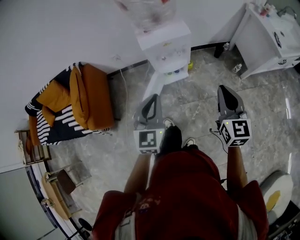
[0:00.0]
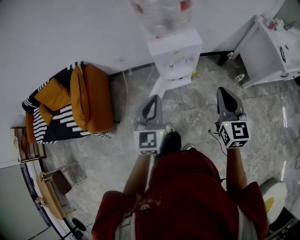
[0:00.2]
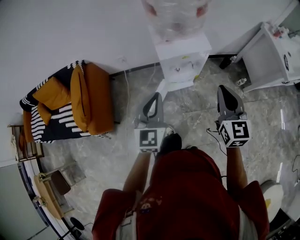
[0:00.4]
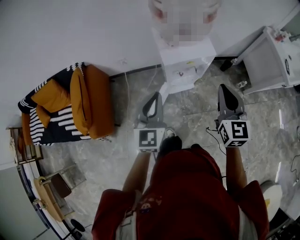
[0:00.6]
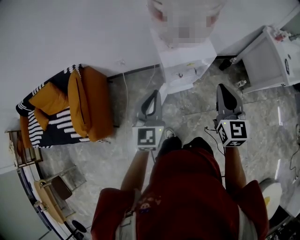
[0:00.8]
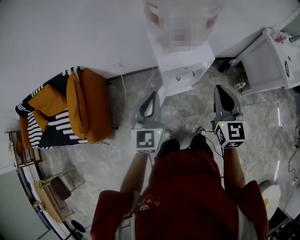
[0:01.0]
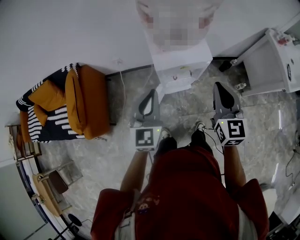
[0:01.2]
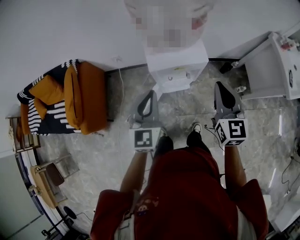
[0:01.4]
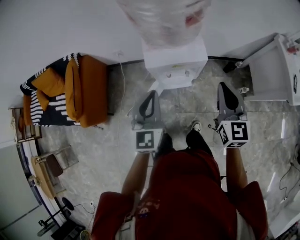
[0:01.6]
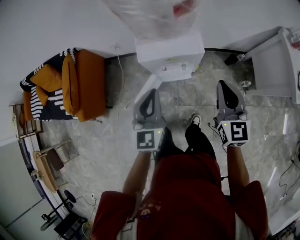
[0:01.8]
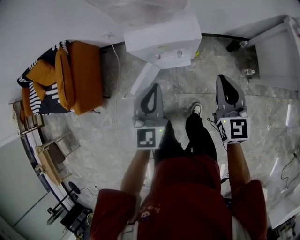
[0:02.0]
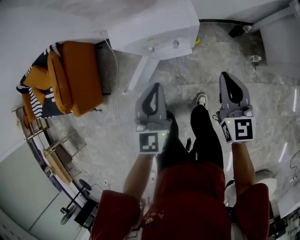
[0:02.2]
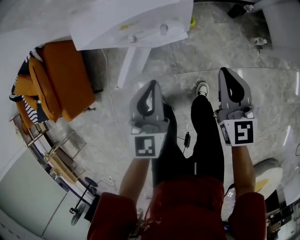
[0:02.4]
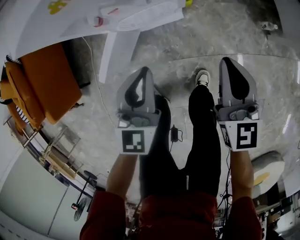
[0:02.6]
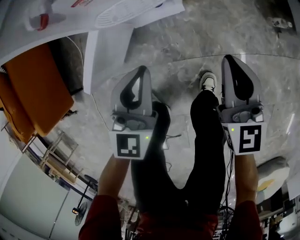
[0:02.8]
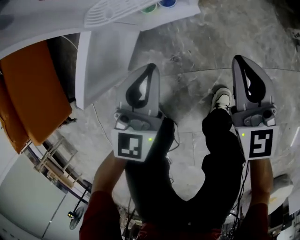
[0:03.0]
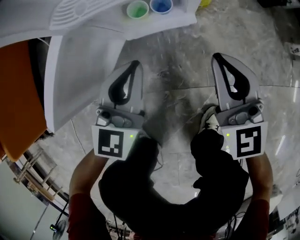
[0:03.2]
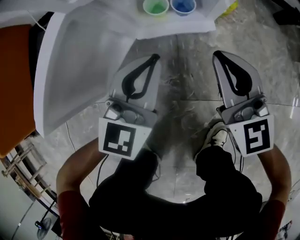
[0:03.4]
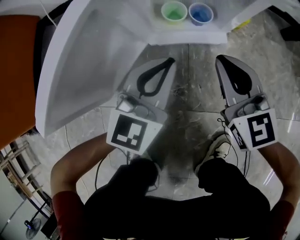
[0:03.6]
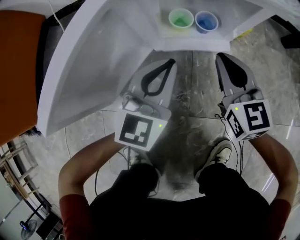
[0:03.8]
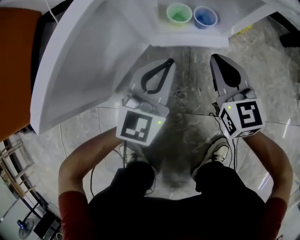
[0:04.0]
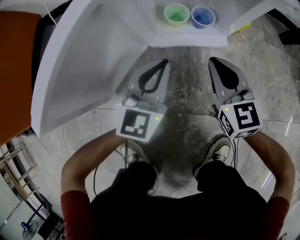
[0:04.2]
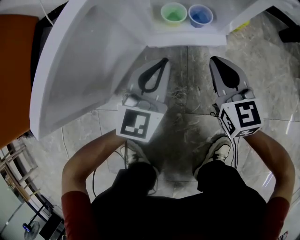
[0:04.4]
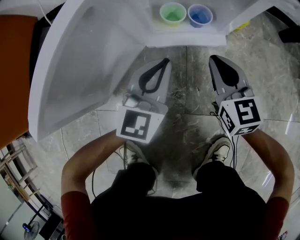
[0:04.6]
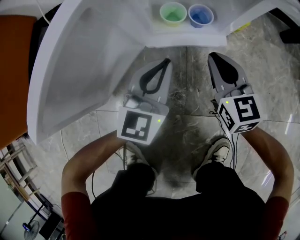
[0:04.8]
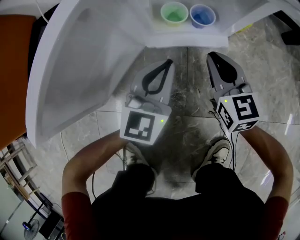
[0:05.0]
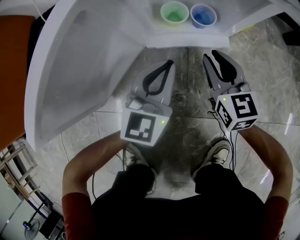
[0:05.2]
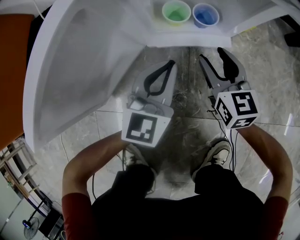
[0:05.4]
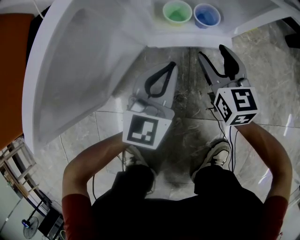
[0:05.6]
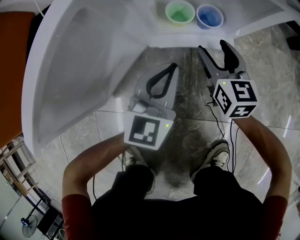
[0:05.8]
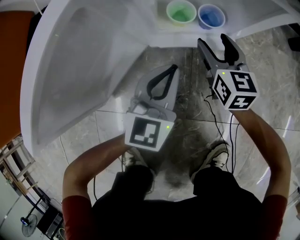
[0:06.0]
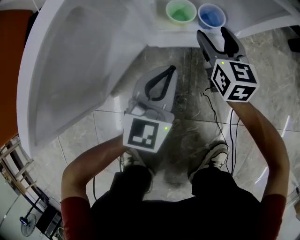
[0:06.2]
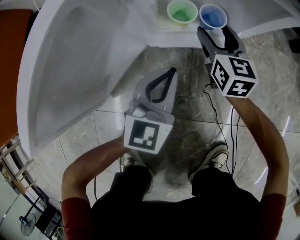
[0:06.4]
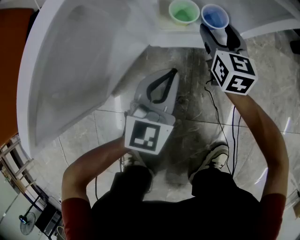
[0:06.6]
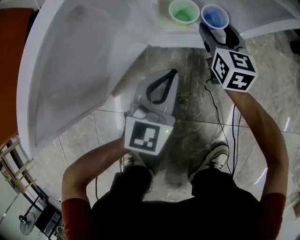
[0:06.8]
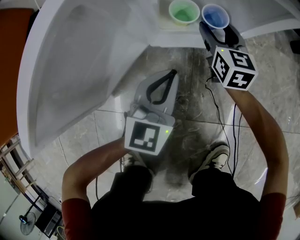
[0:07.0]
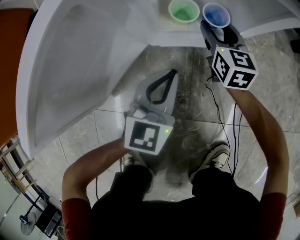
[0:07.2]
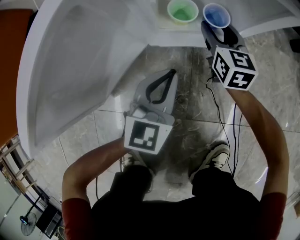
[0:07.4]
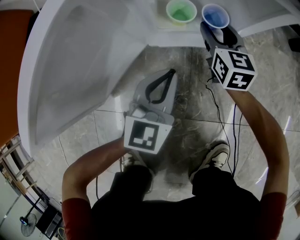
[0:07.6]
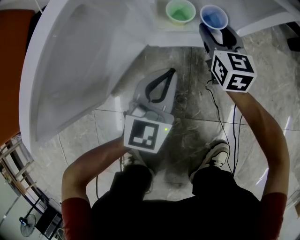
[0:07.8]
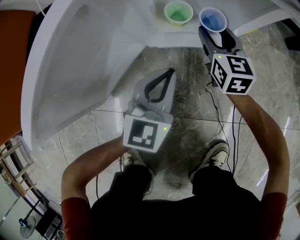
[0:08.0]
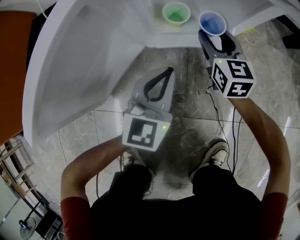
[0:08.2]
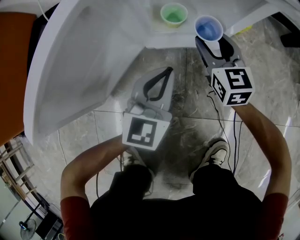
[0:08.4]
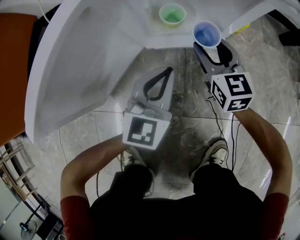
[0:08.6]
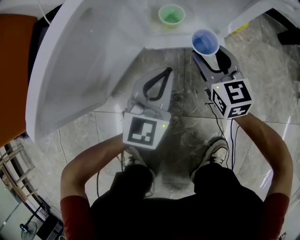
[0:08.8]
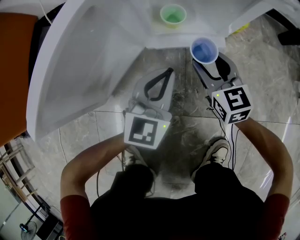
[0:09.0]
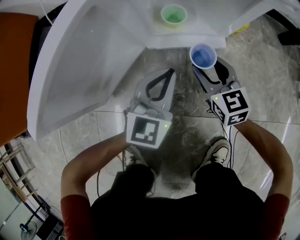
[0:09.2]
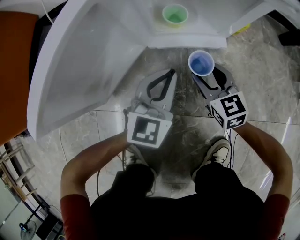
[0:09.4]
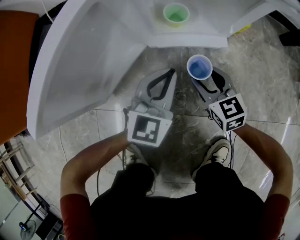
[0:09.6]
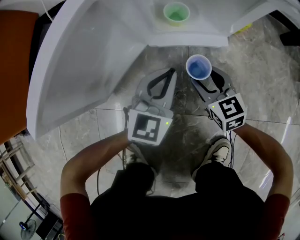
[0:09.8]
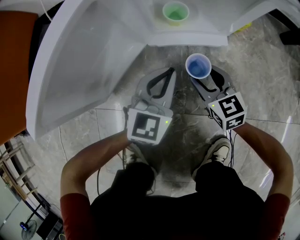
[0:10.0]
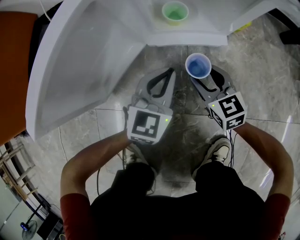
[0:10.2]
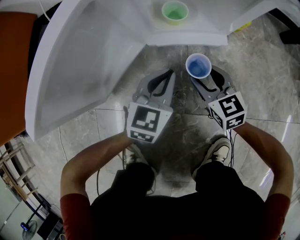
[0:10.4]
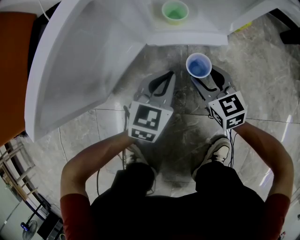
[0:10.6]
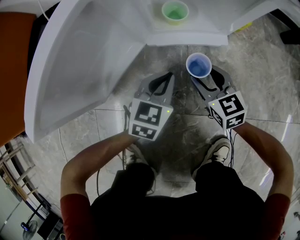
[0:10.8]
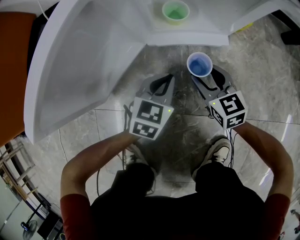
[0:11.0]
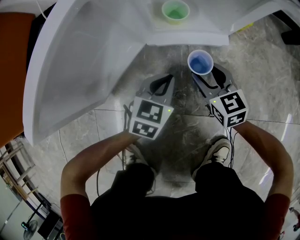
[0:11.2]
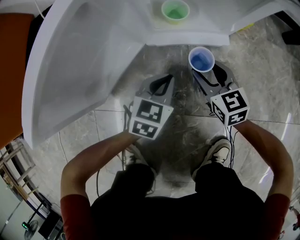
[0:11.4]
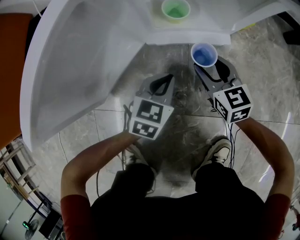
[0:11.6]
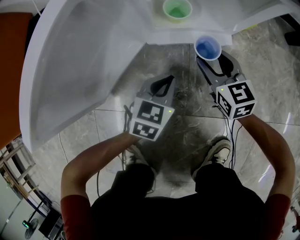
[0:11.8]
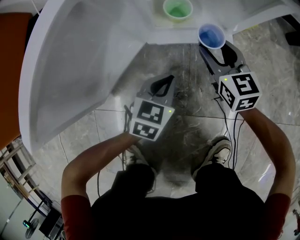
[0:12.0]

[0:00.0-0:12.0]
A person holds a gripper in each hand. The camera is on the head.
0:00.0 to 0:01.6: Both grippers move forward, about 25 cm.
0:01.6 to 0:03.0: Both grippers travel together downward, approximately 60 cm.
0:03.0 to 0:04.4: The left gripper is displaced downward by about 20 cm. Meanwhile the right gripper goes some 25 cm downward and to the left.
0:04.4 to 0:06.0: The right gripper heads forward and downward, covering approximately 10 cm, and opens its fingers.
0:06.0 to 0:07.6: The right gripper shifts by roughly 5 cm.
0:07.6 to 0:09.0: The right gripper shifts approximately 10 cm backward.
0:09.0 to 0:10.4: The right gripper moves some 5 cm. Meanwhile the left gripper heads downward, covering roughly 5 cm.
0:10.4 to 0:12.0: The right gripper travels forward by approximately 10 cm. Meanwhile the left gripper travels downward by some 5 cm.

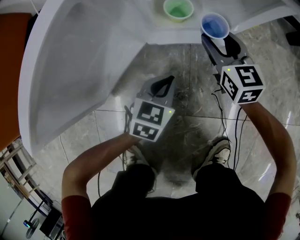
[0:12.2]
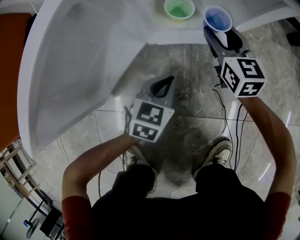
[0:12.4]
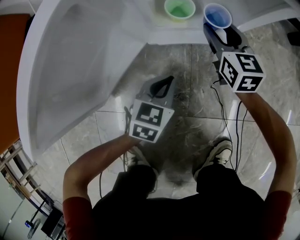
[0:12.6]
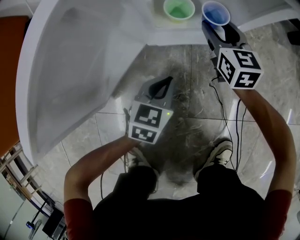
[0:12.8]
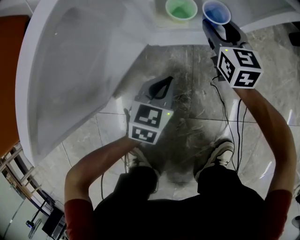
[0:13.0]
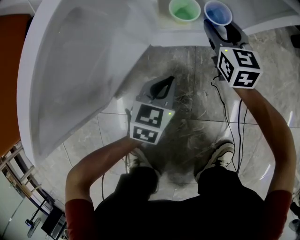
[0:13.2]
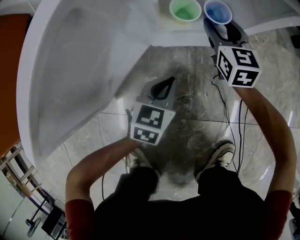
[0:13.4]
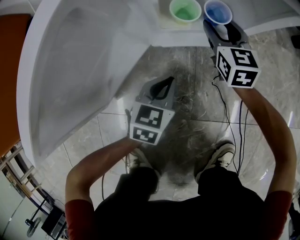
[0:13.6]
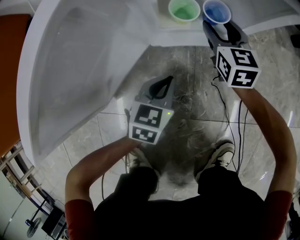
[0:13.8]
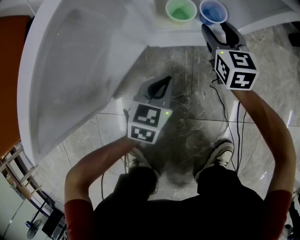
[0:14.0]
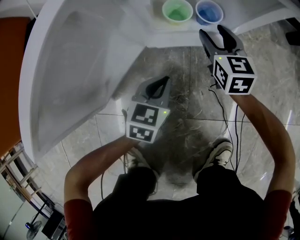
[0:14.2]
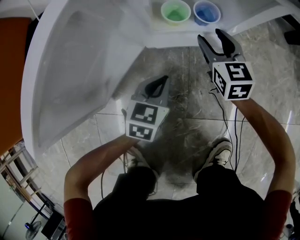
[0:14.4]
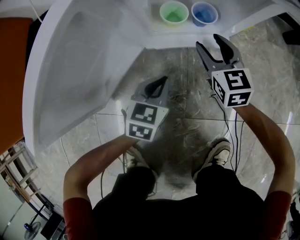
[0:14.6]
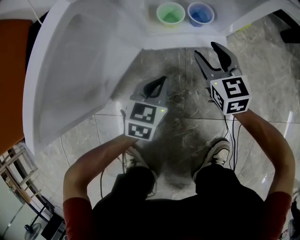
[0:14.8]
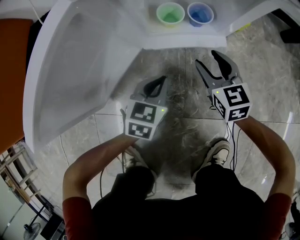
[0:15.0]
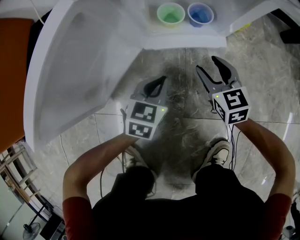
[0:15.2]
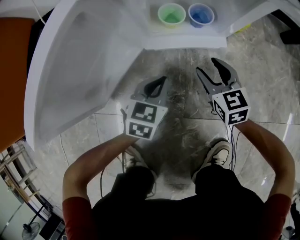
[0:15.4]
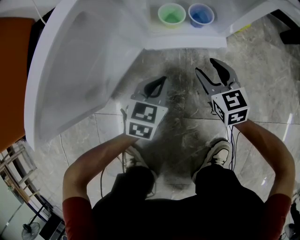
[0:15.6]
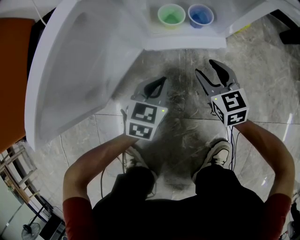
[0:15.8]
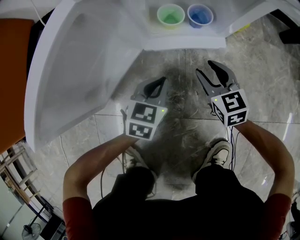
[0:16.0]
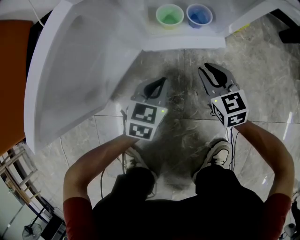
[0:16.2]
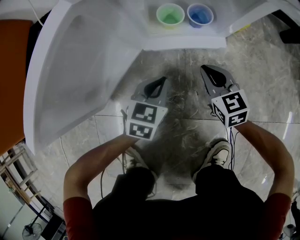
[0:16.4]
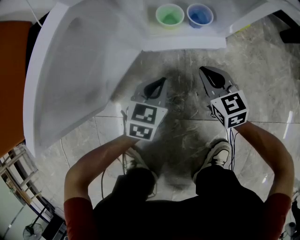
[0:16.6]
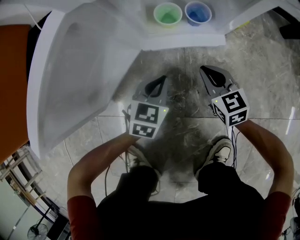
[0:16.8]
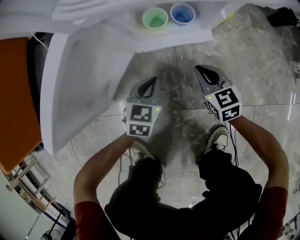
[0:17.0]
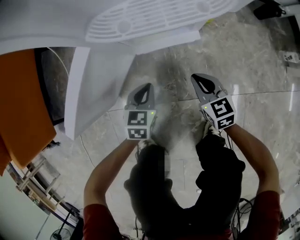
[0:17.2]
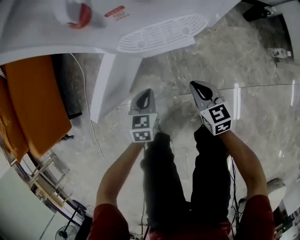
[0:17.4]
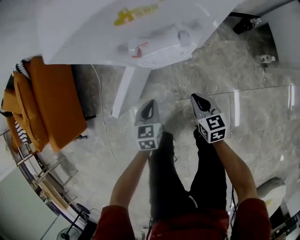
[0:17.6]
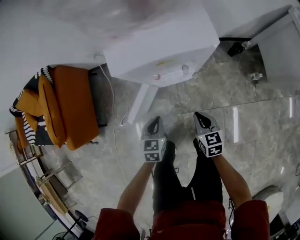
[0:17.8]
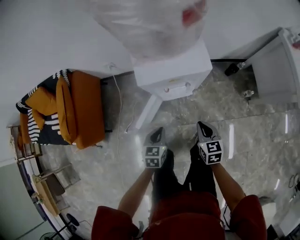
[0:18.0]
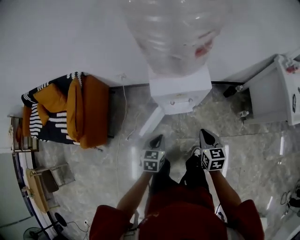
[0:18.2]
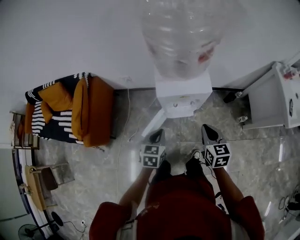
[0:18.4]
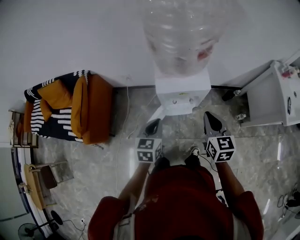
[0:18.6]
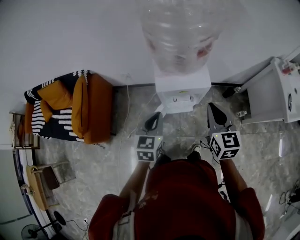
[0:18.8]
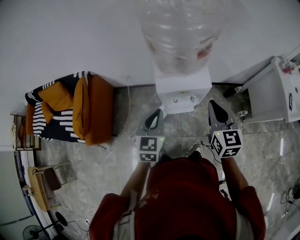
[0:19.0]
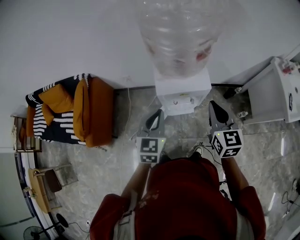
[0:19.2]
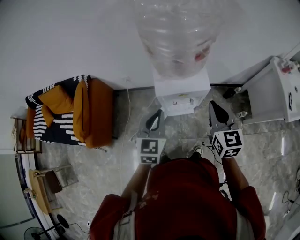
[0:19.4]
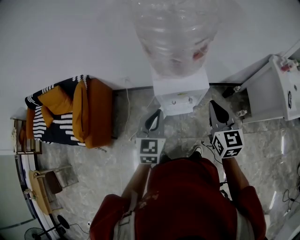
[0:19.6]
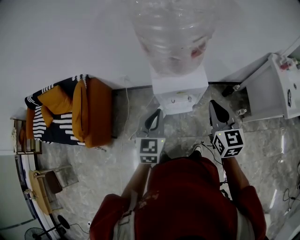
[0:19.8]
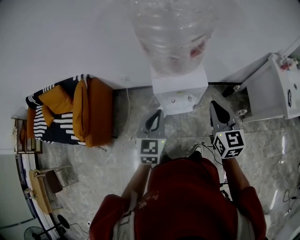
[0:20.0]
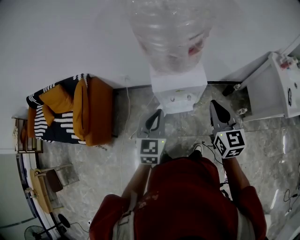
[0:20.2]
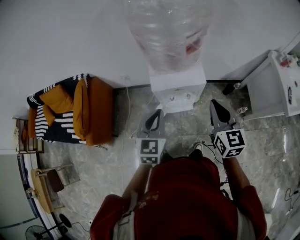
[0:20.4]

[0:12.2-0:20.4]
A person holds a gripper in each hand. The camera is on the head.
0:12.2 to 0:13.8: The right gripper shifts approximately 5 cm forward.
0:13.8 to 0:15.4: The right gripper shifts approximately 15 cm backward.
0:15.4 to 0:17.2: The left gripper is displaced upward by roughly 10 cm; the right gripper shifts approximately 10 cm upward and backward, and closes up.
0:17.2 to 0:18.8: The two grippers go some 90 cm upward. The left gripper changes its angle by about 20 degrees, while the right gripper turns by some 20 degrees.
0:18.8 to 0:20.4: The left gripper moves roughly 5 cm.

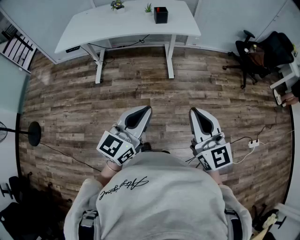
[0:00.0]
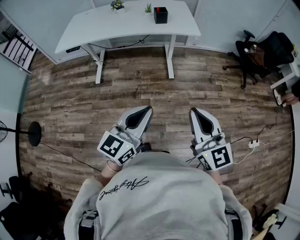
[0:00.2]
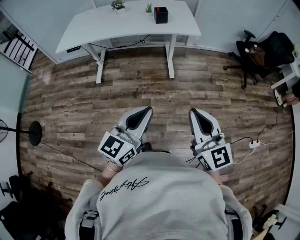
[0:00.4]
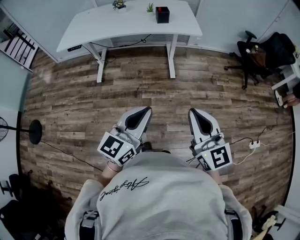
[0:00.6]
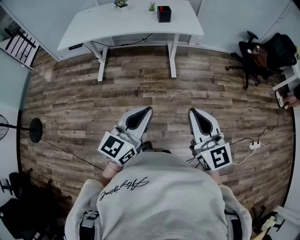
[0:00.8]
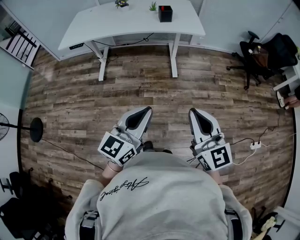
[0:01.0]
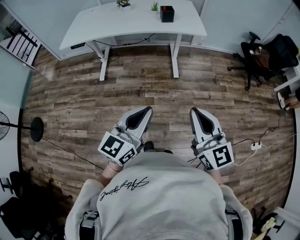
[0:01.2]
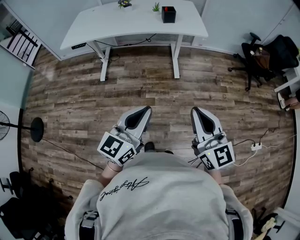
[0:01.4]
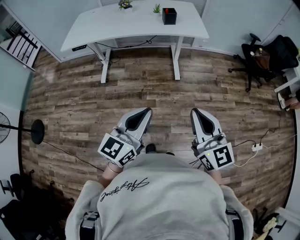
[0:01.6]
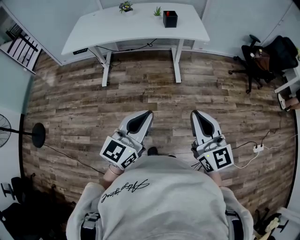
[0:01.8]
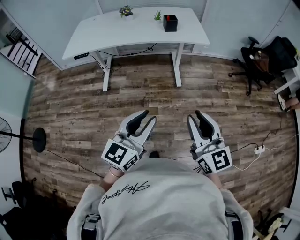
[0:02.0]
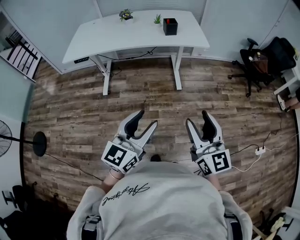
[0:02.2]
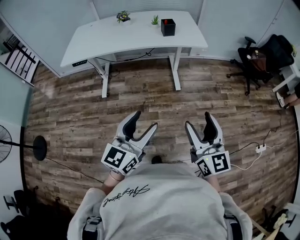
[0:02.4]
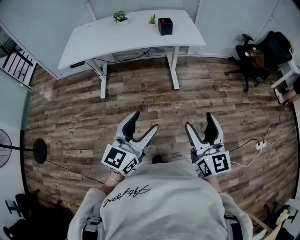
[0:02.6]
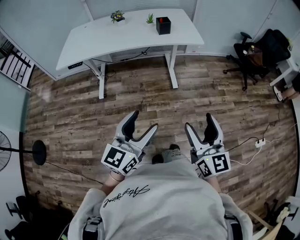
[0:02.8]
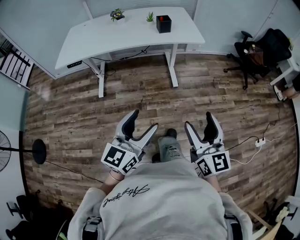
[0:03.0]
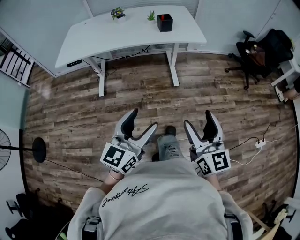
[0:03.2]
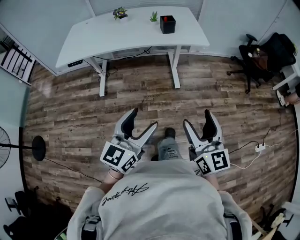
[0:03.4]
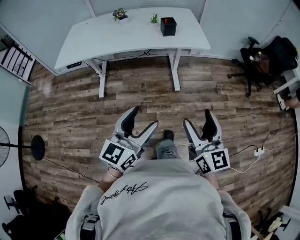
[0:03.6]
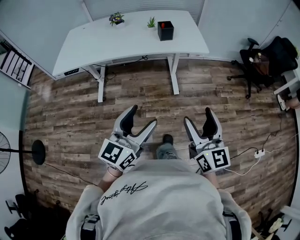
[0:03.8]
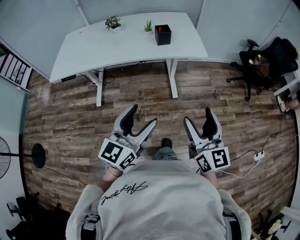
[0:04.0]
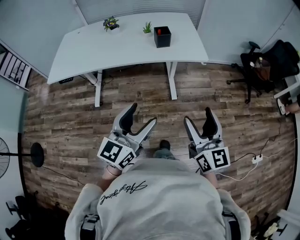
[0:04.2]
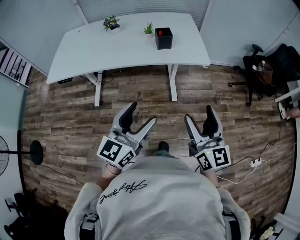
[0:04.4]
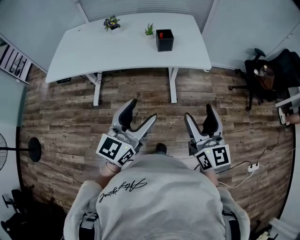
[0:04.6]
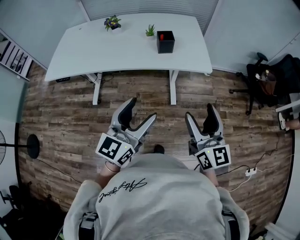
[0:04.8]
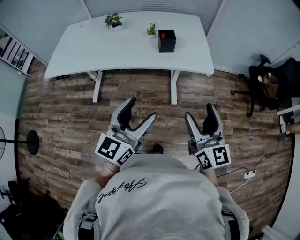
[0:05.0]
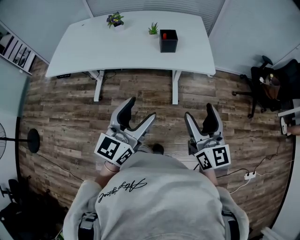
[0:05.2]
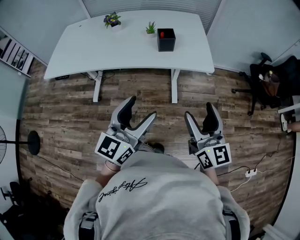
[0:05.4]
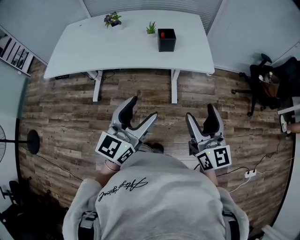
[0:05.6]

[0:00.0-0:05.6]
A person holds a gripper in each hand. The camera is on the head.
0:00.0 to 0:01.4: The grippers move only a little.
0:01.4 to 0:02.8: The left gripper heads to the left, covering about 5 cm, and opens. Meanwhile the right gripper opens up.
0:02.8 to 0:04.2: Both grippers travel together forward, about 20 cm.
0:04.2 to 0:05.6: Both grippers travel together forward, about 10 cm.
